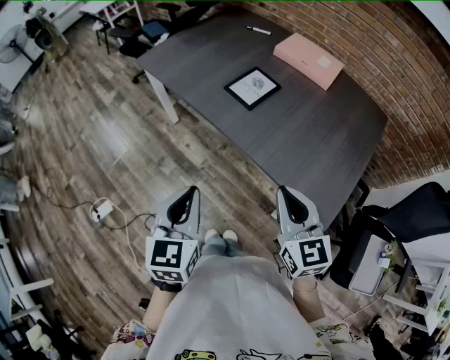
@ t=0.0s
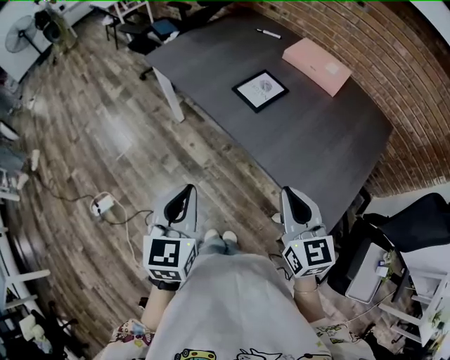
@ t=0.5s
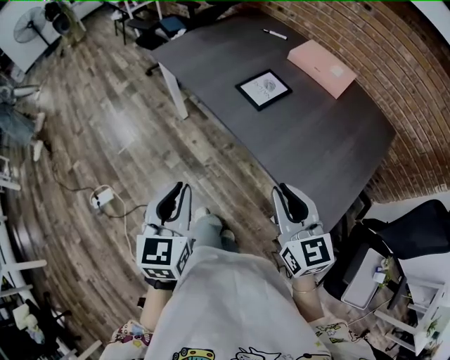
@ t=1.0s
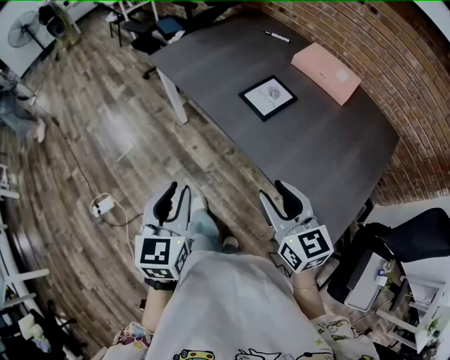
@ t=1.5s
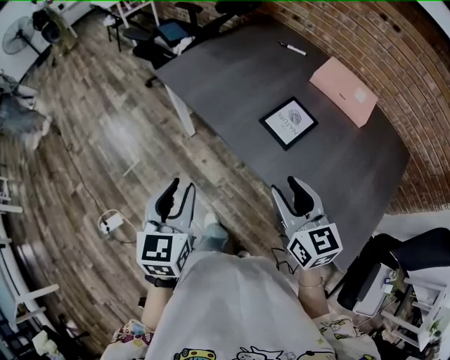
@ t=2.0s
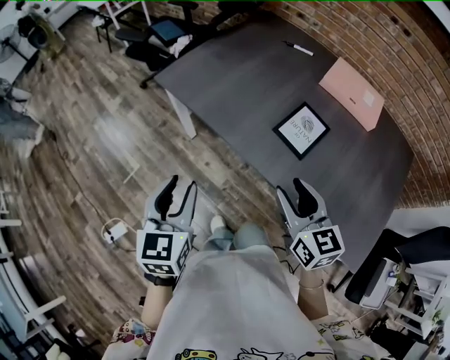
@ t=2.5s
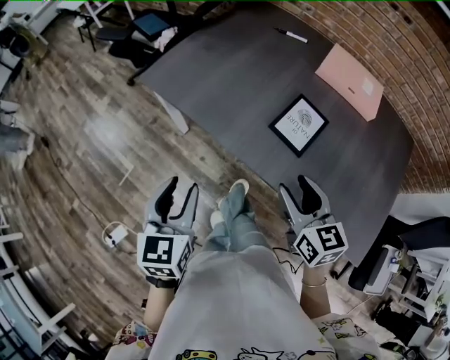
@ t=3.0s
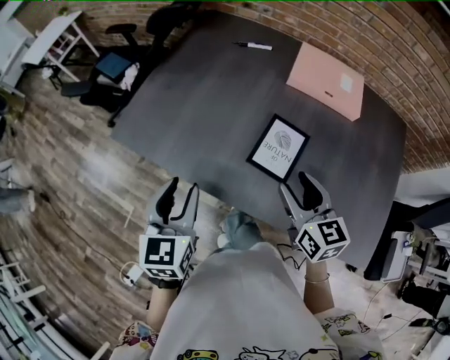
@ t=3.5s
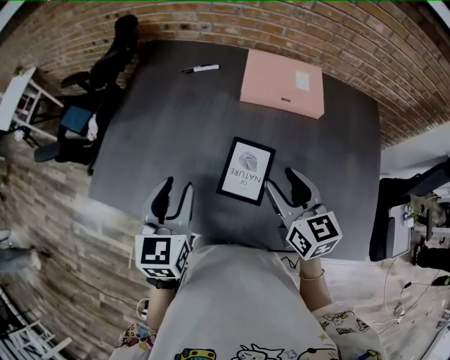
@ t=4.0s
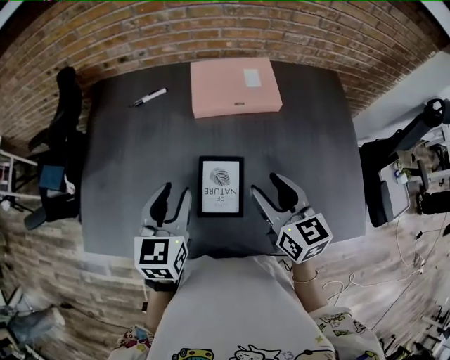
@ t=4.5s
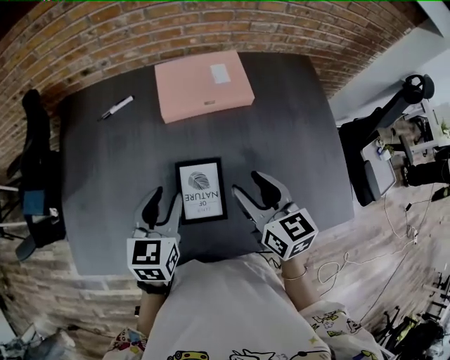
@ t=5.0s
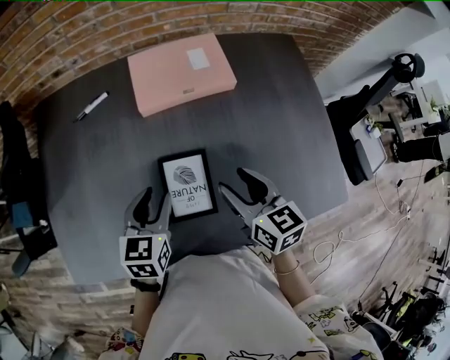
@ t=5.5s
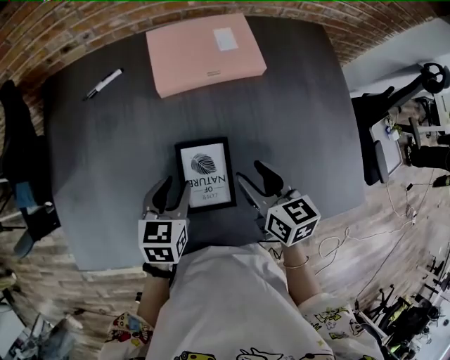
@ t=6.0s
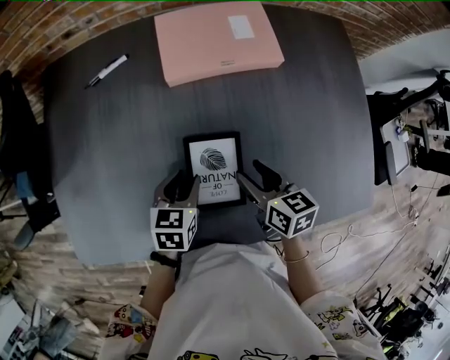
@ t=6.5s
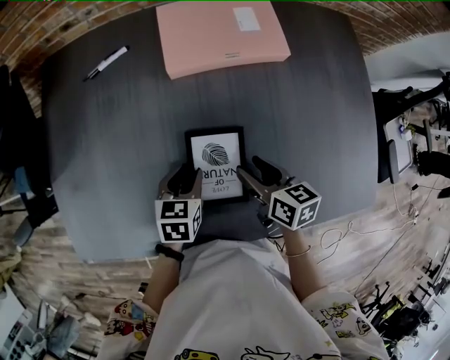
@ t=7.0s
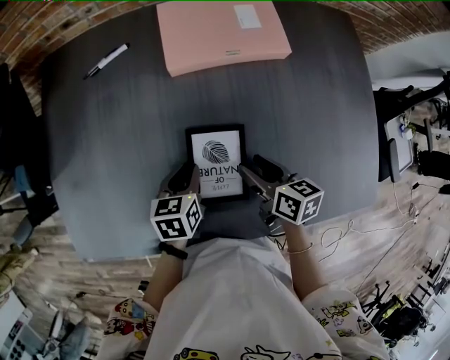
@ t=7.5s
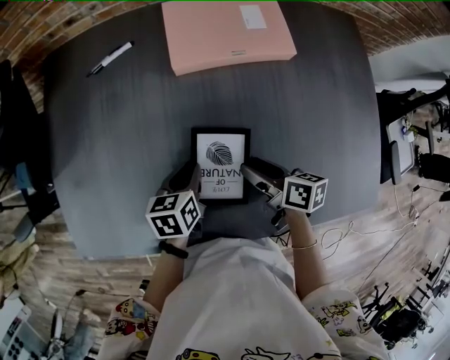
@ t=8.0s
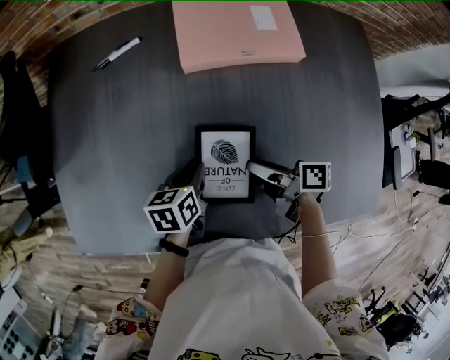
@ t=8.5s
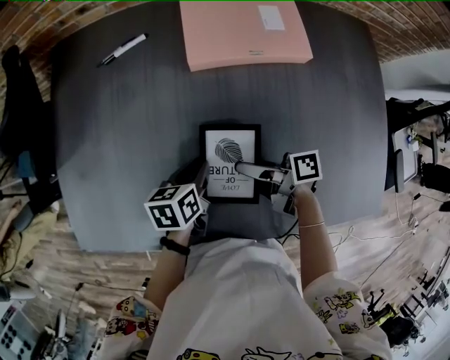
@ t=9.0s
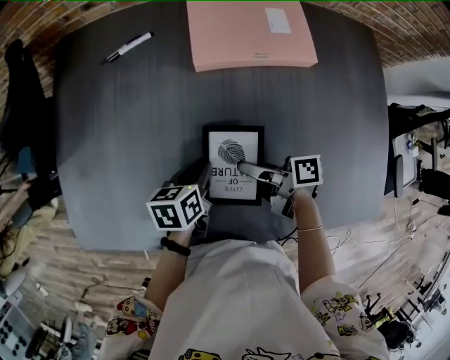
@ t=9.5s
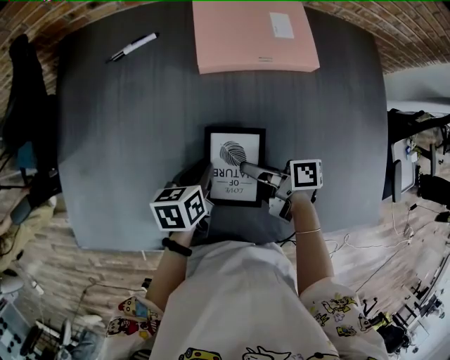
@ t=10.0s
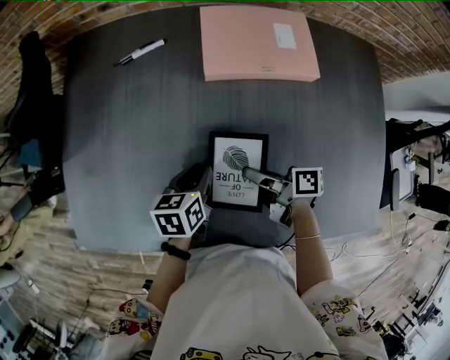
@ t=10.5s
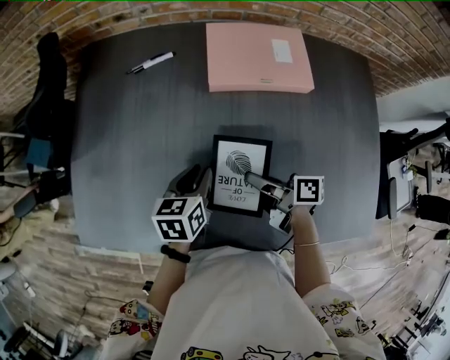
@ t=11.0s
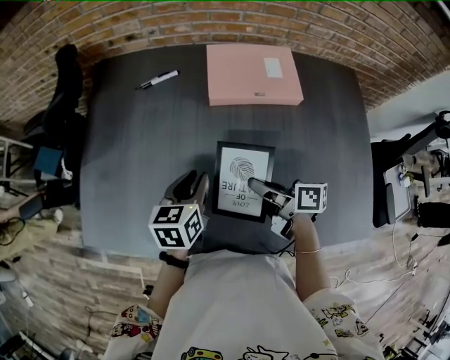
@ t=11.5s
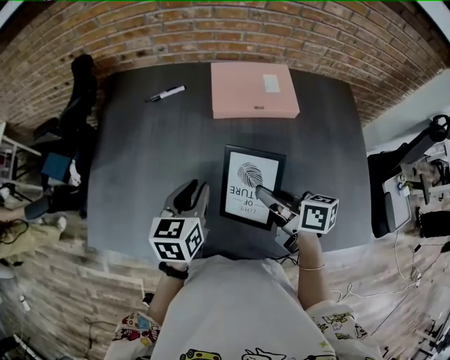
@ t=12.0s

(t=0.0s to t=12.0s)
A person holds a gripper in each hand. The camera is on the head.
t=0.0s - t=2.0s: Both grippers move forward and to the left, approximately 20 cm. The right gripper opens; the left gripper opens its fingers.
t=2.0s - t=4.0s: The right gripper changes place by roughly 25 cm, and rotates approximately 30 degrees, while the left gripper moves roughly 35 cm, and turns by some 30 degrees.
t=4.0s - t=6.0s: The right gripper heads downward, covering about 10 cm, and turns by approximately 30 degrees. Meanwhile the left gripper moves downward, forward and to the right, roughly 20 cm, and turns by some 40 degrees.
t=6.0s - t=8.0s: The grippers both shift downward by roughly 10 cm. The right gripper turns by some 30 degrees. Meanwhile the left gripper rotates some 20 degrees, and closes its fingers.
t=8.0s - t=10.0s: The right gripper travels to the left by about 5 cm, swivels about 30 degrees, and closes.
t=10.0s - t=12.0s: The two grippers go about 15 cm upward. The left gripper rotates approximately 30 degrees. The right gripper turns by roughly 30 degrees.

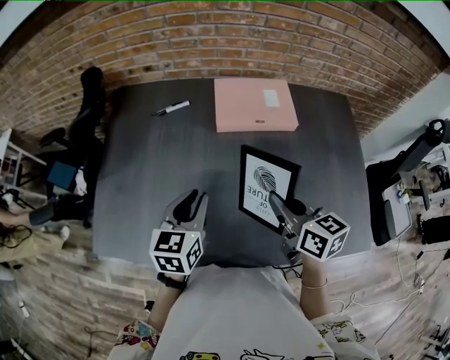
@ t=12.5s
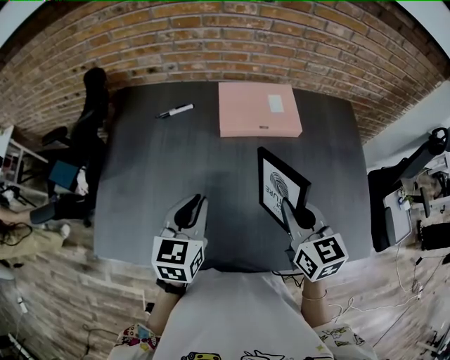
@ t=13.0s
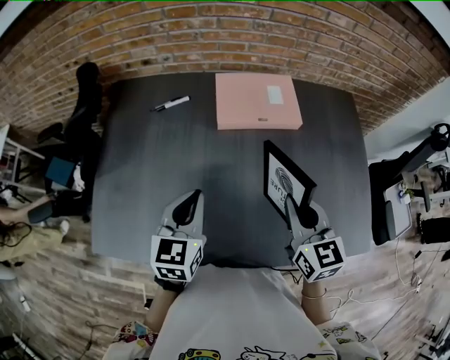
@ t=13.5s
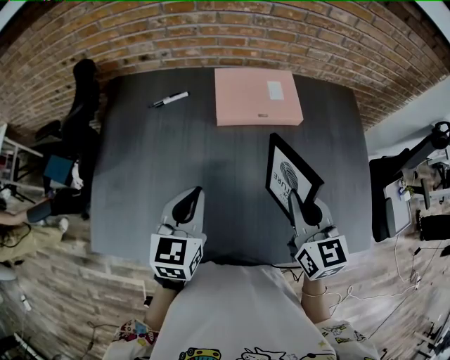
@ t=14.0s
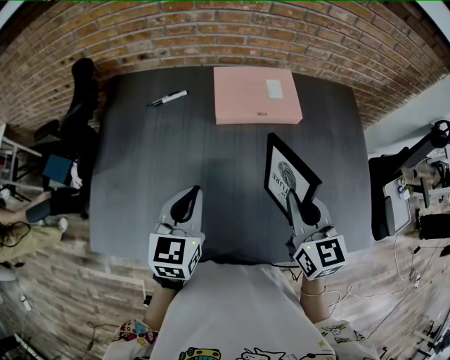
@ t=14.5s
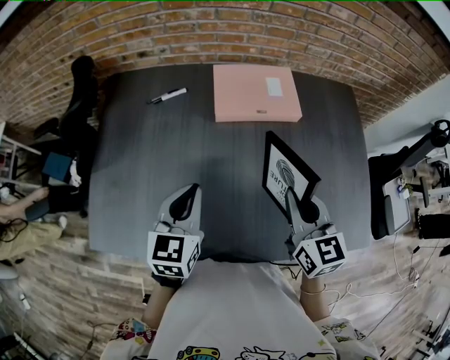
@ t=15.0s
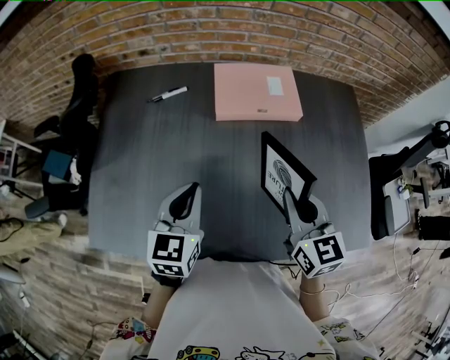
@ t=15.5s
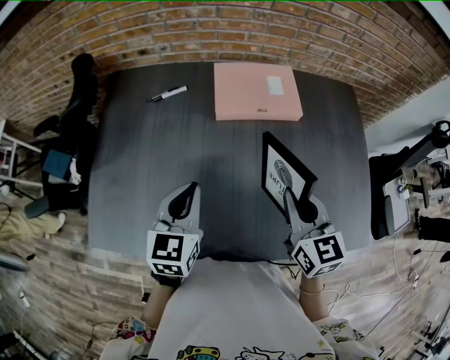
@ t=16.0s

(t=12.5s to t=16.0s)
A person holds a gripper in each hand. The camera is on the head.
t=12.5s - t=14.5s: The right gripper turns by roughly 30 degrees.
t=14.5s - t=16.0s: Both grippers stay about where they are.

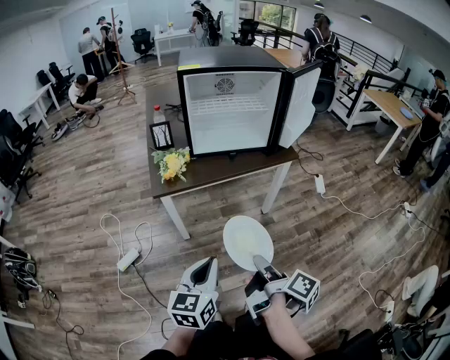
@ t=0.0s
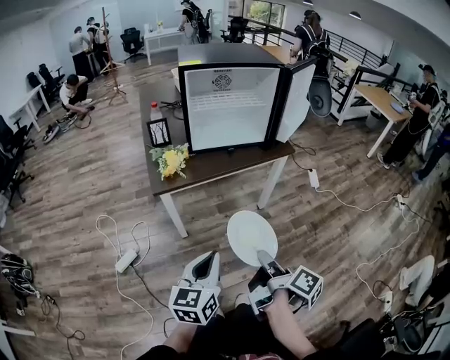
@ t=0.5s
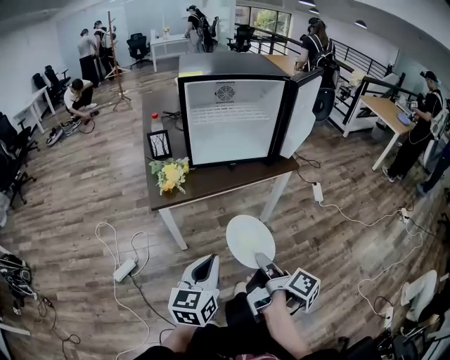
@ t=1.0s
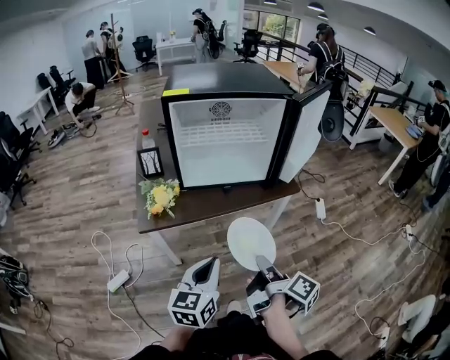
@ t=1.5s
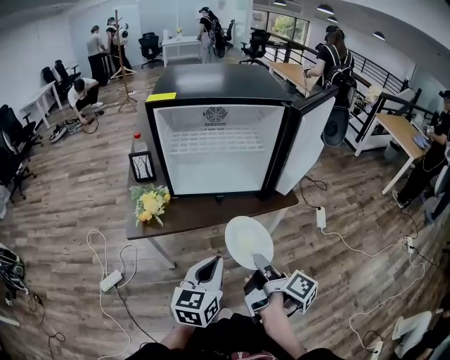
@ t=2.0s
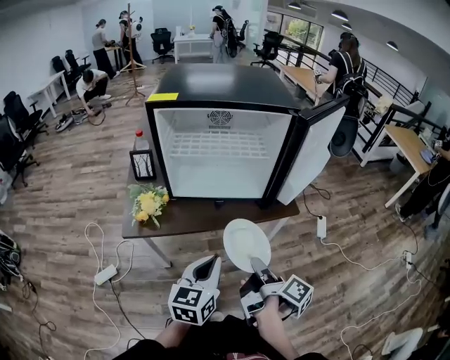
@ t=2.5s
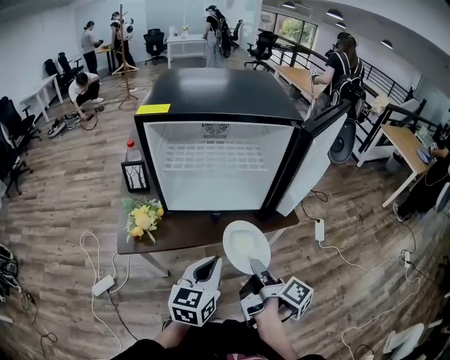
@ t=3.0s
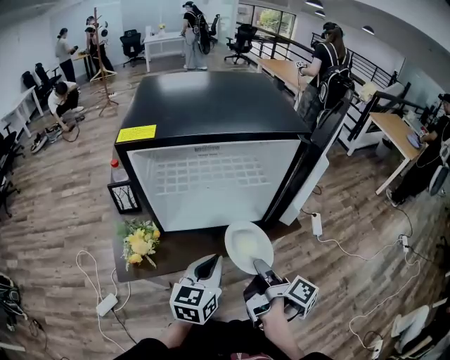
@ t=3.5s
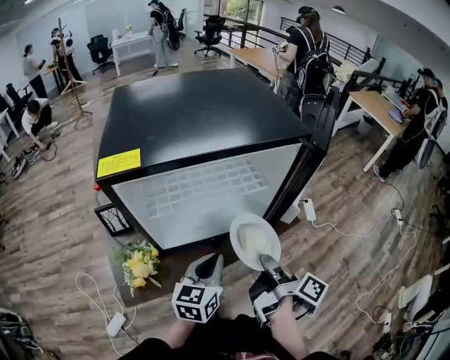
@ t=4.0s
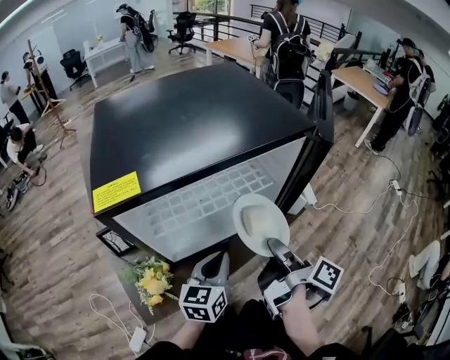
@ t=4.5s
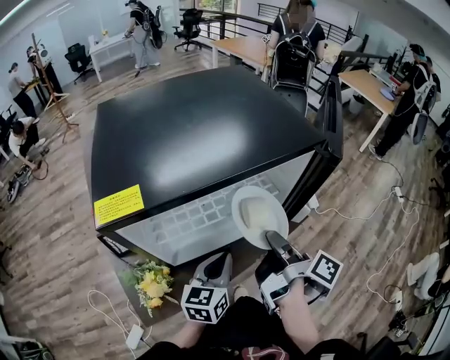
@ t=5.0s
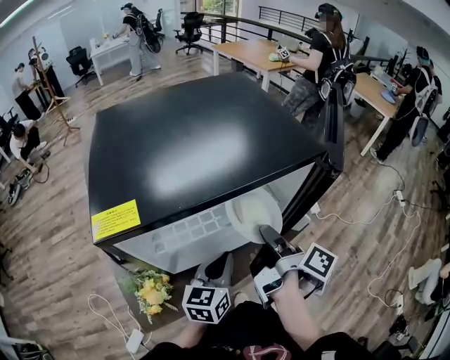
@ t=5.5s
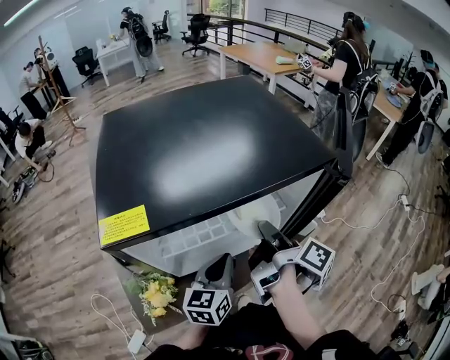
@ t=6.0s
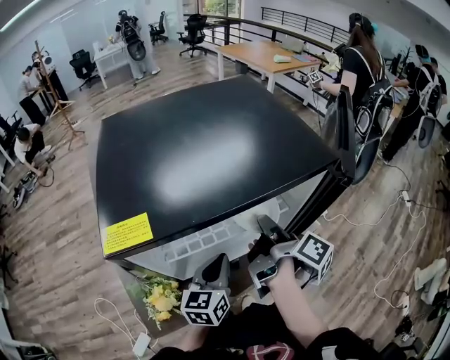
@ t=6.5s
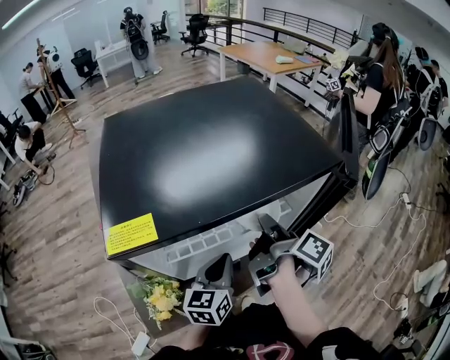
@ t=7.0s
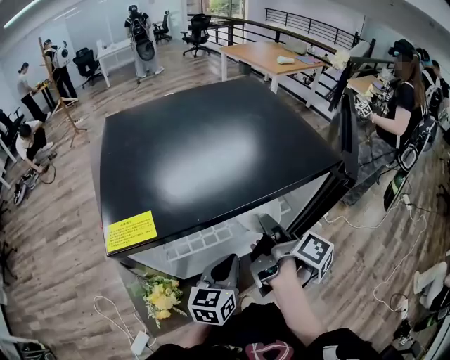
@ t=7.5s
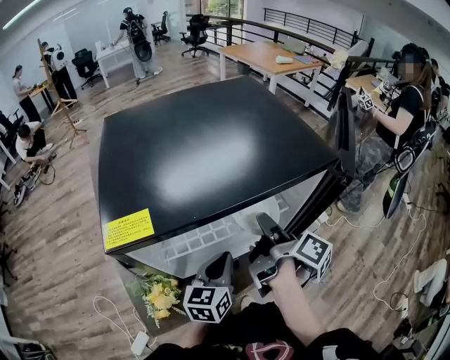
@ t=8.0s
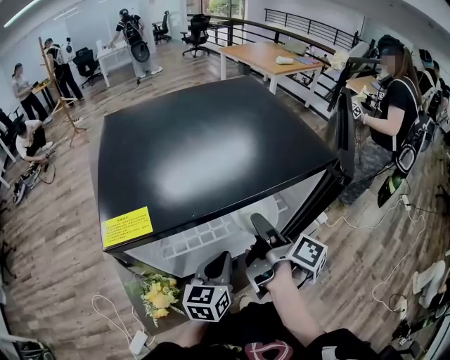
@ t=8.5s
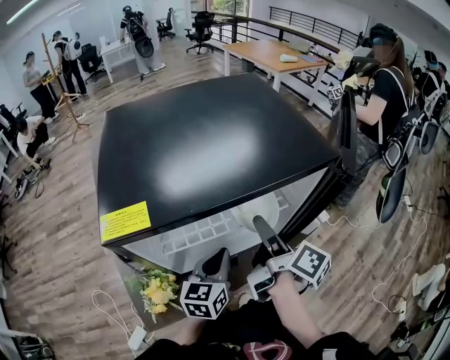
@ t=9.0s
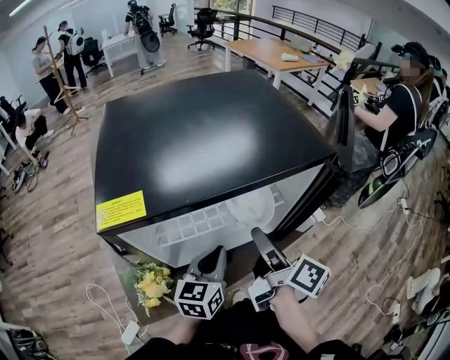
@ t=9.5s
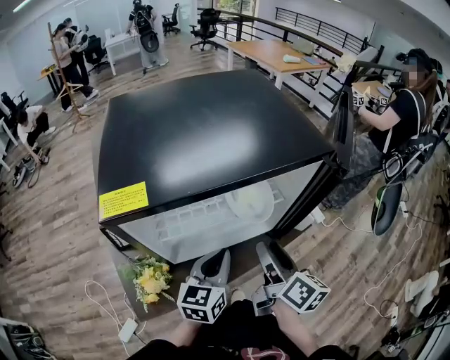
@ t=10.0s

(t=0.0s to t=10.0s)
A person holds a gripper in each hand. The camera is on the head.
t=0.0s - t=2.0s: Both grippers move forward, about 25 cm.
t=2.0s - t=4.0s: Both grippers move forward, roughly 20 cm.
t=4.0s - t=6.0s: The right gripper moves forward, to the left and upward, approximately 15 cm. The left gripper is displaced forward by some 10 cm.
t=6.0s - t=8.0s: There are only small adjustments of the grippers.
t=8.0s - t=10.0s: The right gripper heads backward, covering roughly 10 cm, and turns by approximately 30 degrees.

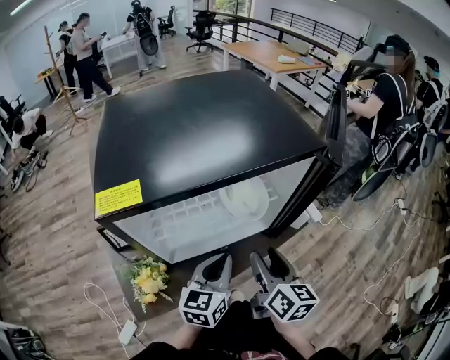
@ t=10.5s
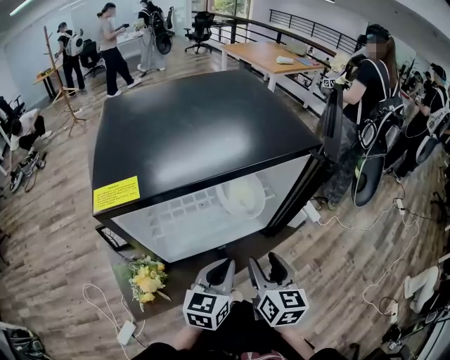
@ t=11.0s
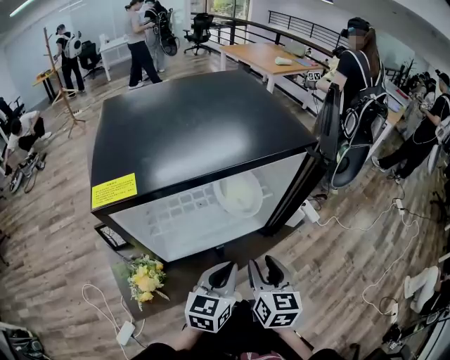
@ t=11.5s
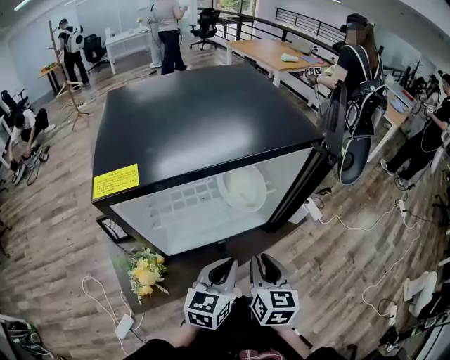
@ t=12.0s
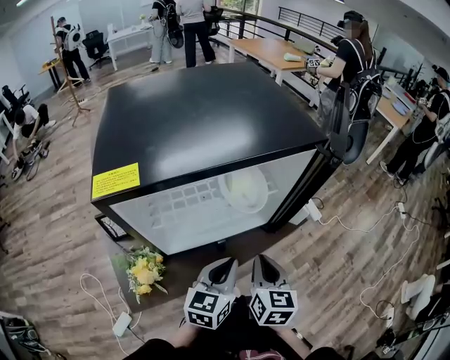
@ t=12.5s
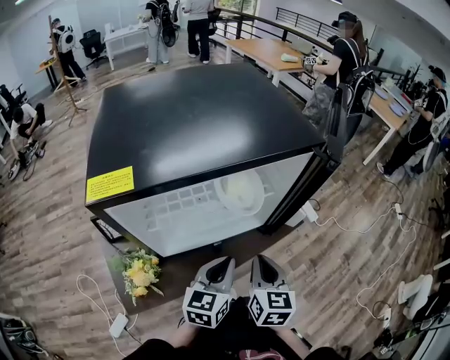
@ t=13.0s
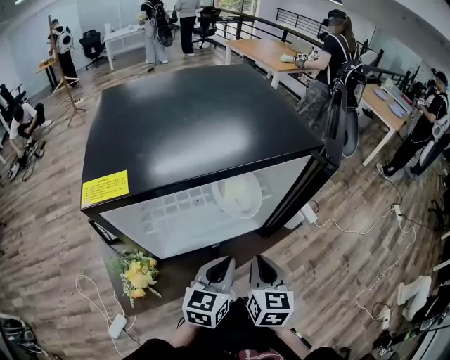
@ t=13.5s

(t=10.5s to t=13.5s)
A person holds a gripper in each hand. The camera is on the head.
t=10.5s - t=12.0s: The right gripper rotates about 20 degrees, and closes up.
t=12.0s - t=13.5s: There are only small adjustments of the grippers.
